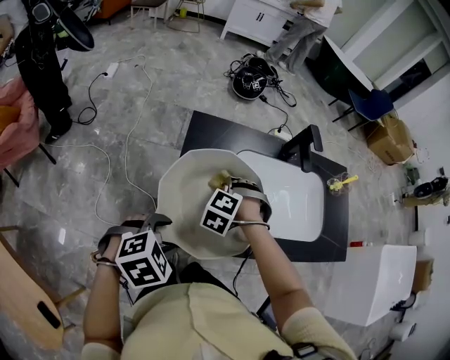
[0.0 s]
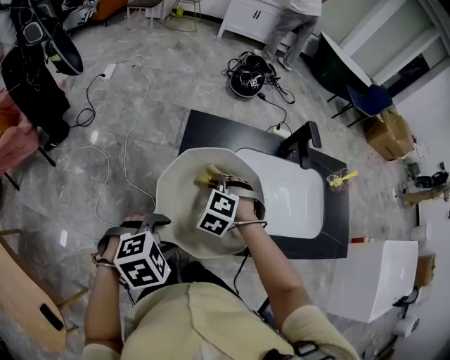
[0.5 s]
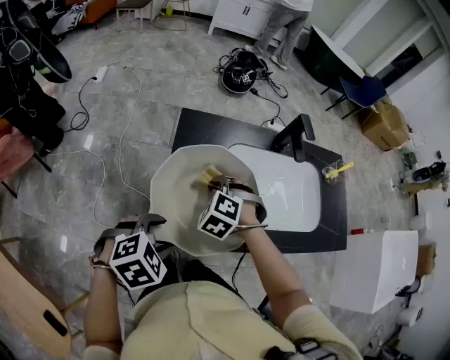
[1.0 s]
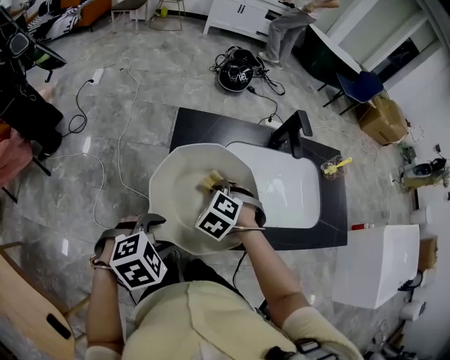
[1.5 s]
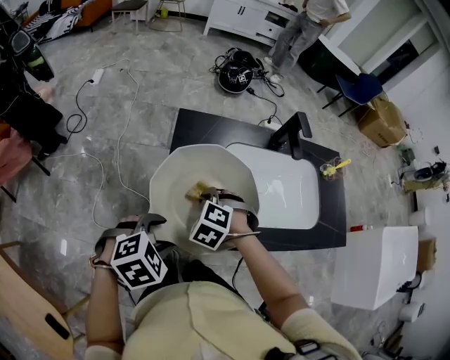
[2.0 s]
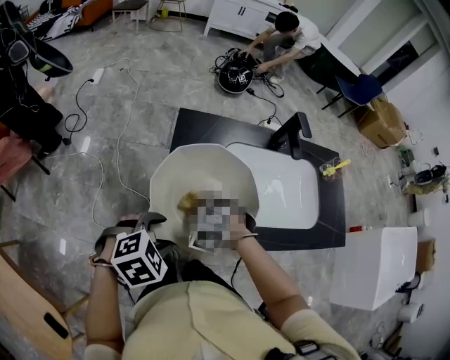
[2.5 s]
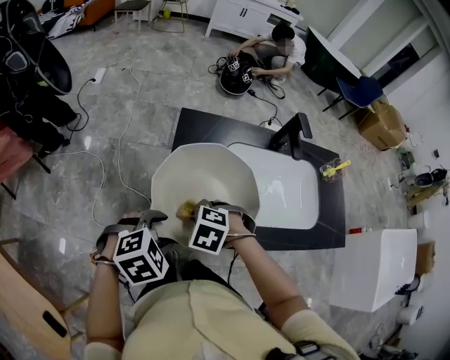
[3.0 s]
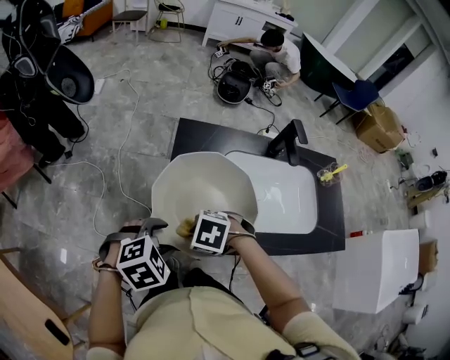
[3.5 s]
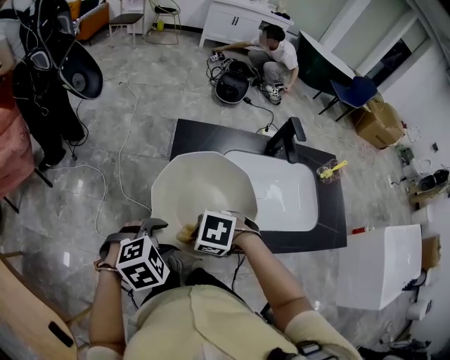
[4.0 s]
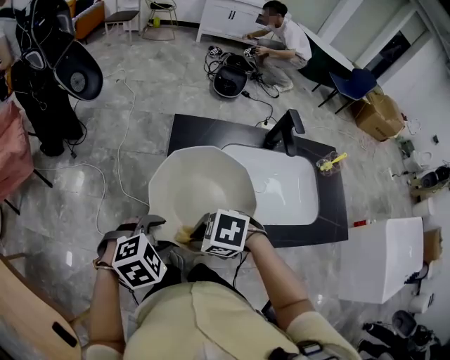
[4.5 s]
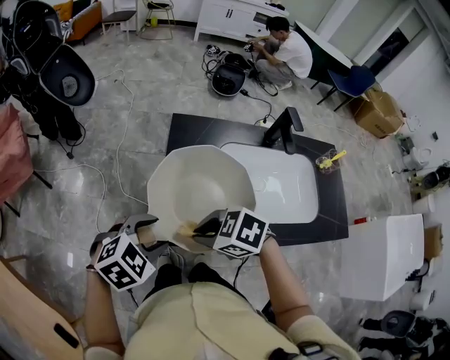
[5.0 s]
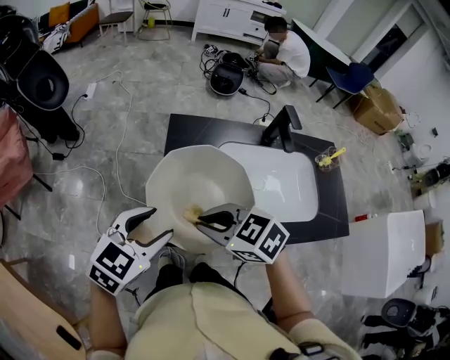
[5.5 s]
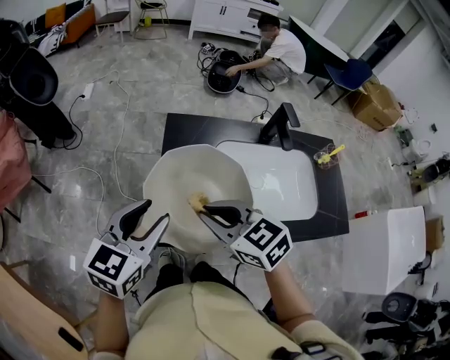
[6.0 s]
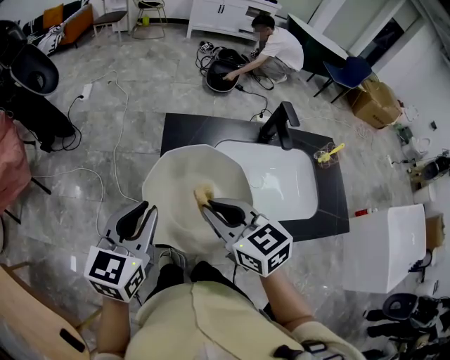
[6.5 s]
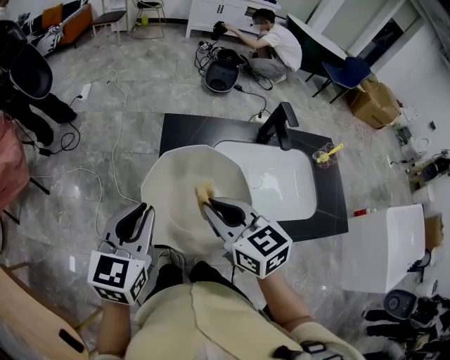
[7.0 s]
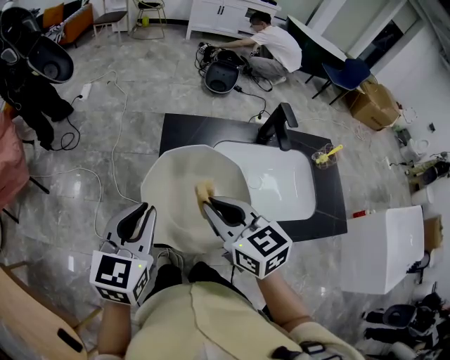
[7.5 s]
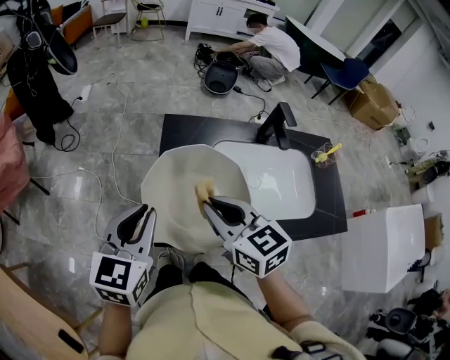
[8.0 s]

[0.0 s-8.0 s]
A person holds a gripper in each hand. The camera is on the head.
0.0 to 2.0 s: The right gripper goes roughly 5 cm backward.
2.0 to 4.0 s: The right gripper shifts by roughly 15 cm, and turns by approximately 40 degrees.
4.0 to 6.0 s: The grippers both shift upward by some 10 cm. The left gripper tips its fingers upward by about 40 degrees. Meanwhile the right gripper tilts its fingers about 40 degrees upward.
6.0 to 8.0 s: The left gripper closes its fingers.

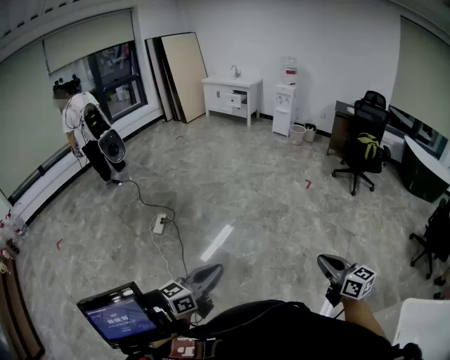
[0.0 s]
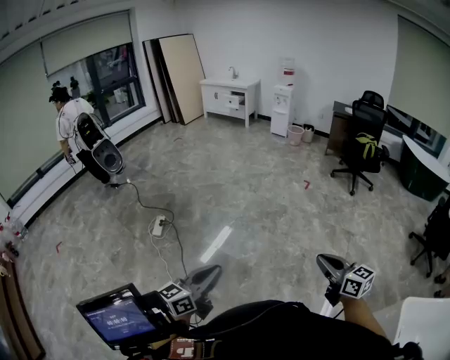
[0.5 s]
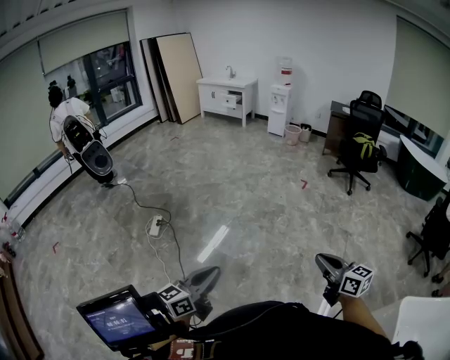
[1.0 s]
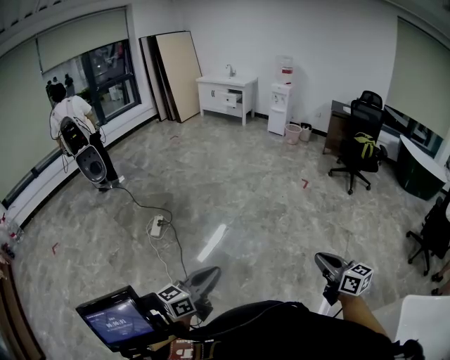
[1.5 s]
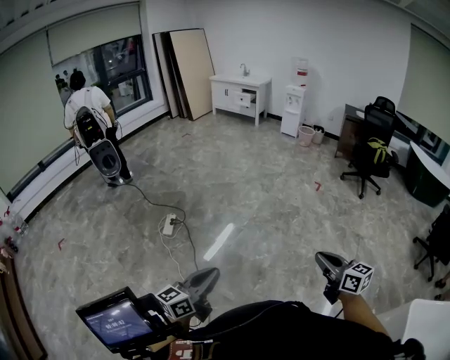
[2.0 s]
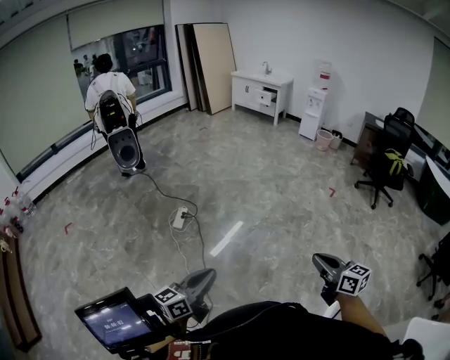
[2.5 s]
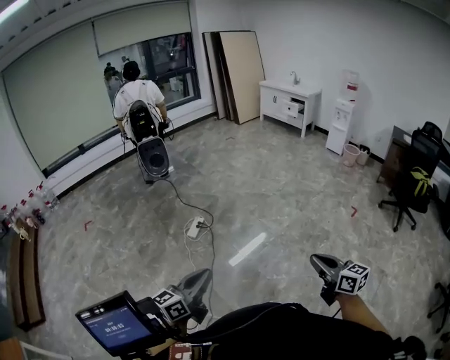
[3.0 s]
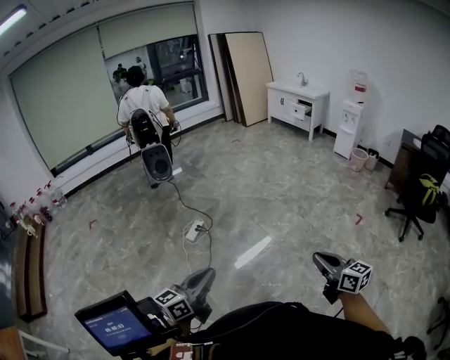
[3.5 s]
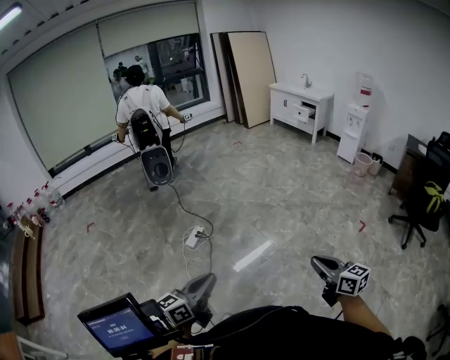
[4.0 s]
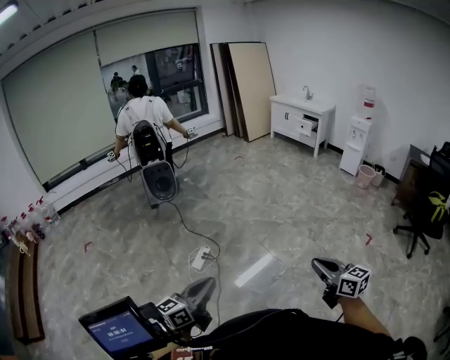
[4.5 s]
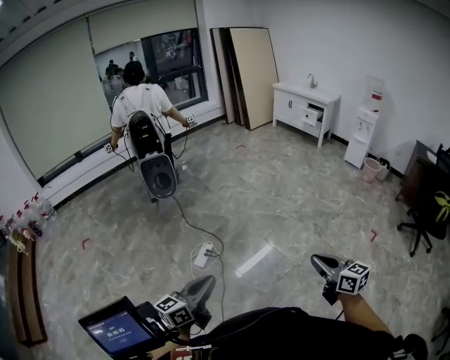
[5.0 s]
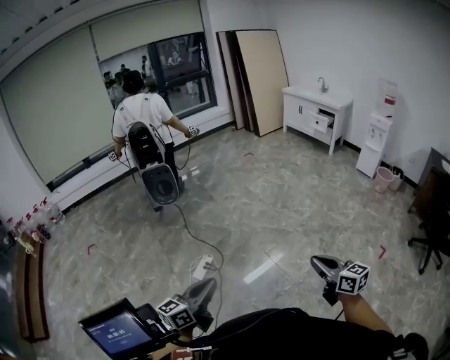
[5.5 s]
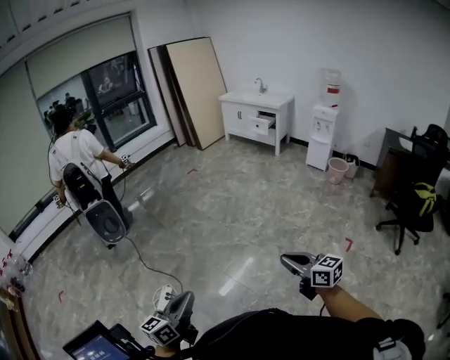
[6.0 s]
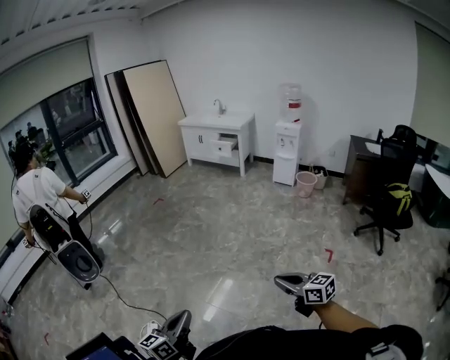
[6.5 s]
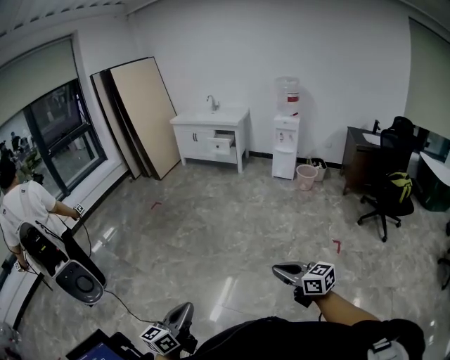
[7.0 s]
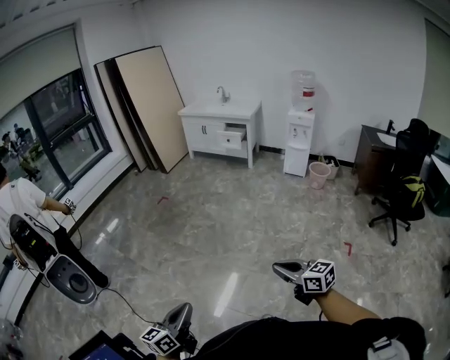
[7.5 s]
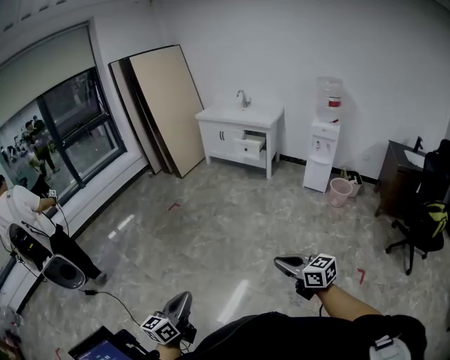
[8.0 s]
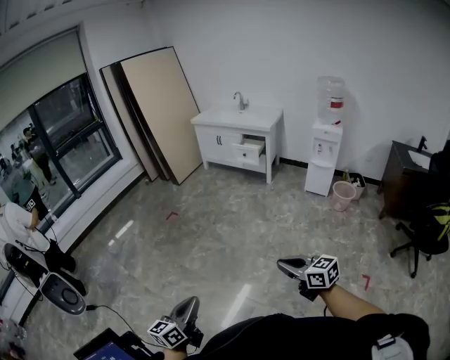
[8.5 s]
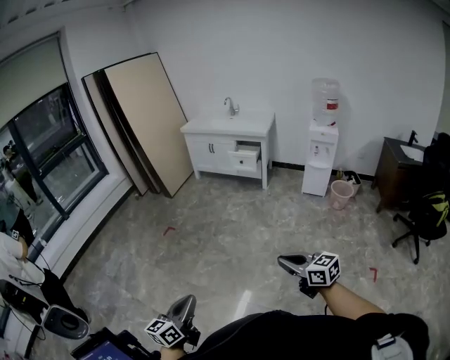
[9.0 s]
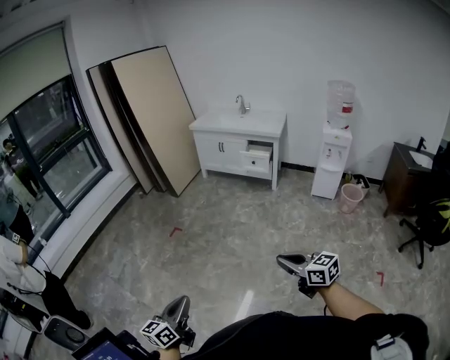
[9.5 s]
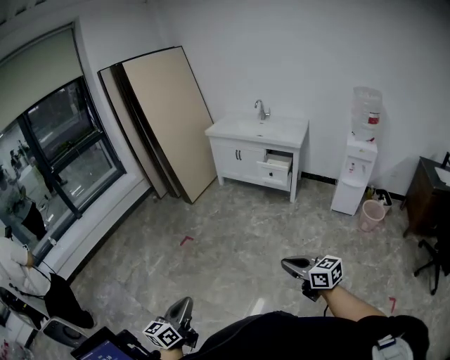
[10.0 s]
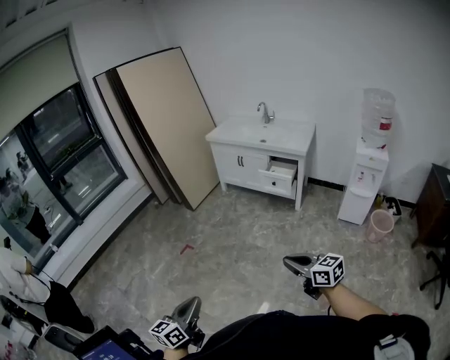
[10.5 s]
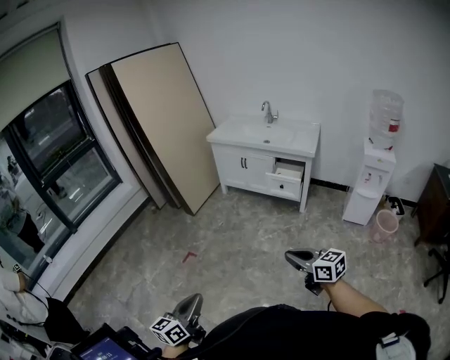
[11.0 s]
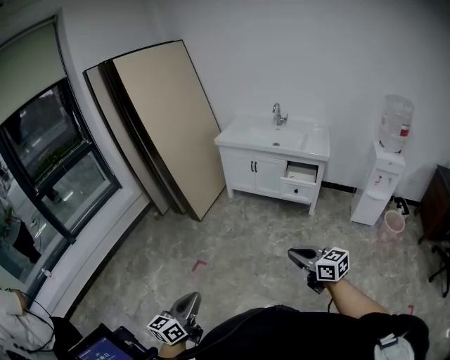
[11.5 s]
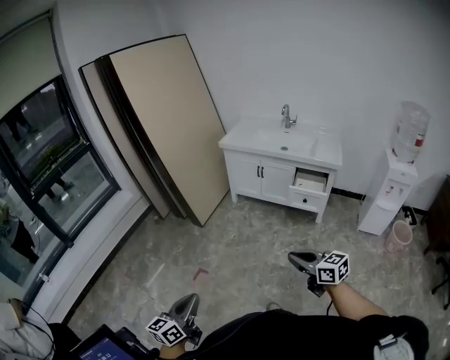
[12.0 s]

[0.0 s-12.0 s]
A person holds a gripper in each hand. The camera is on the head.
0.0 to 2.0 s: Both grippers travel together to the left, roughly 15 cm.
2.0 to 4.0 s: The left gripper moves forward and to the right, about 25 cm, and swivels roughly 20 degrees; the right gripper moves forward, about 30 cm, and changes its angle by some 20 degrees.
4.0 to 6.0 s: Both grippers are carried forward, approximately 50 cm.
6.0 to 8.0 s: The two grippers travel together, forward, roughly 50 cm.
8.0 to 10.0 s: The two grippers travel together, forward, roughly 50 cm.
10.0 to 12.0 s: The pair of grippers is taken forward, some 50 cm.

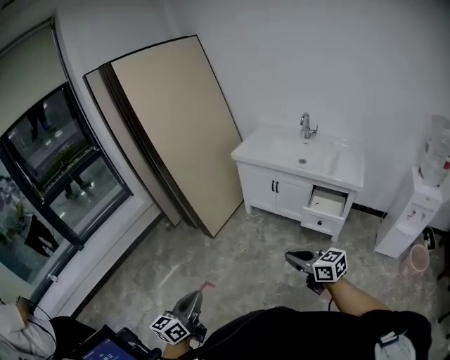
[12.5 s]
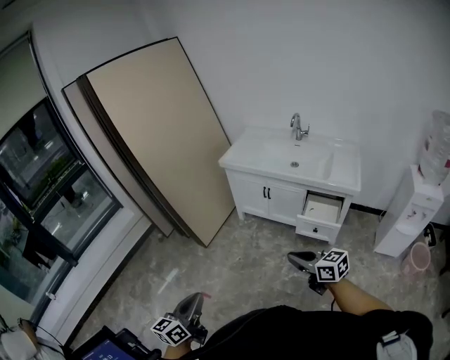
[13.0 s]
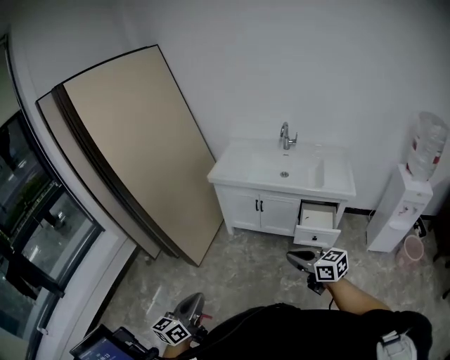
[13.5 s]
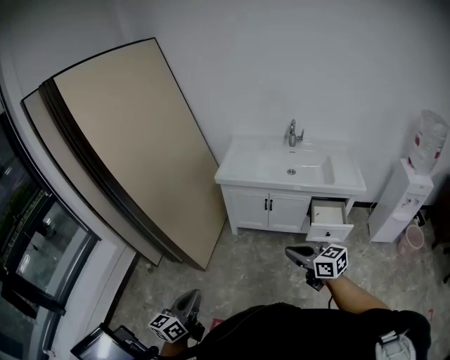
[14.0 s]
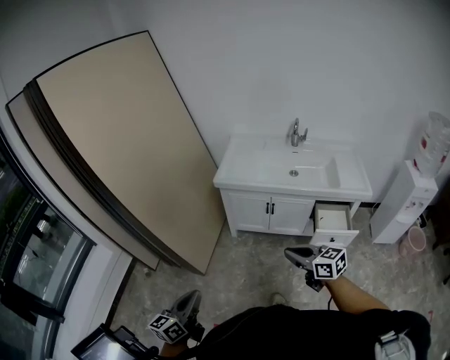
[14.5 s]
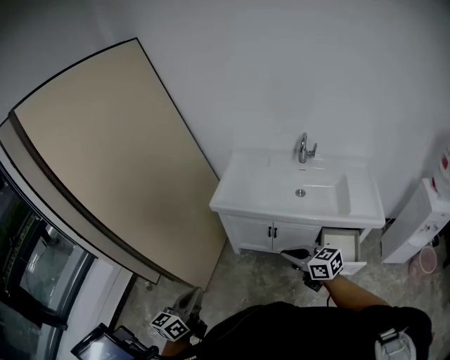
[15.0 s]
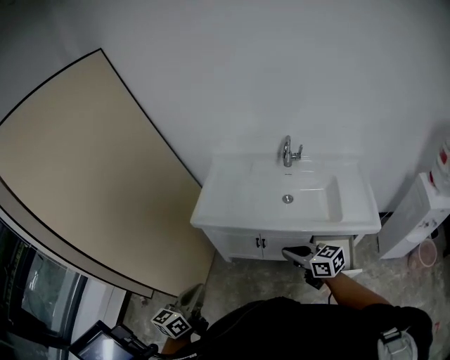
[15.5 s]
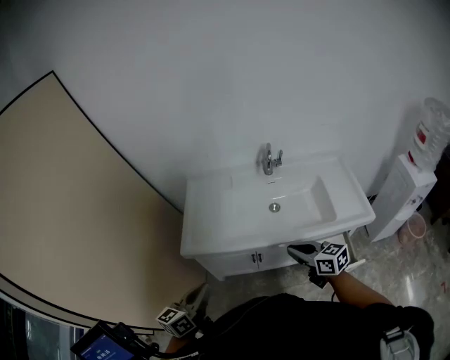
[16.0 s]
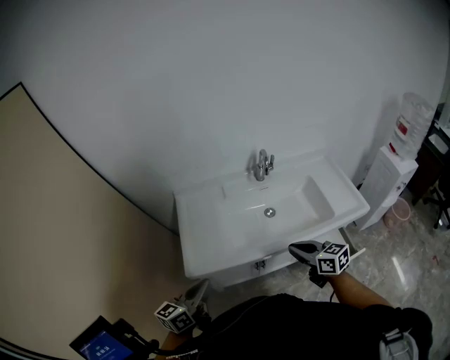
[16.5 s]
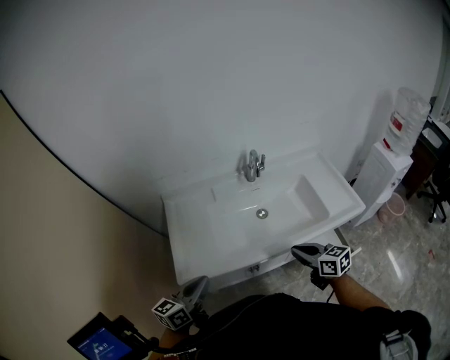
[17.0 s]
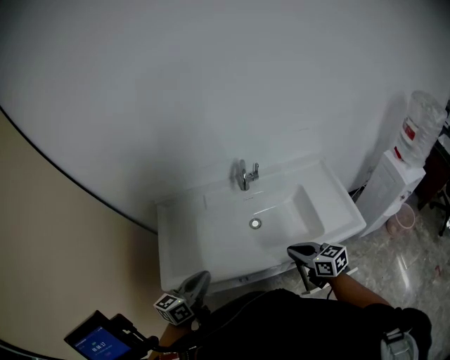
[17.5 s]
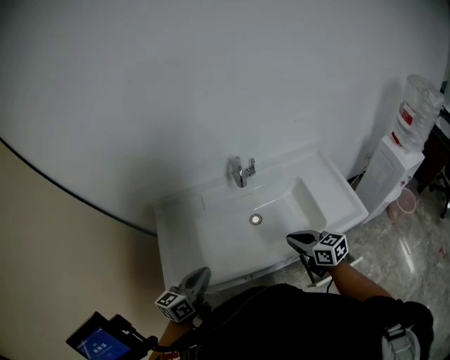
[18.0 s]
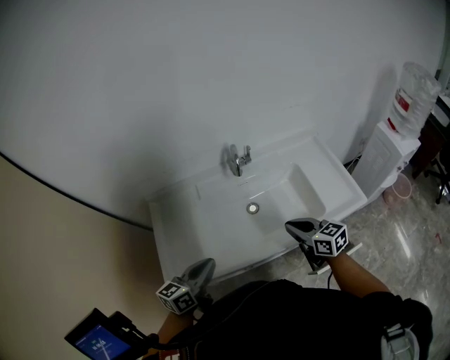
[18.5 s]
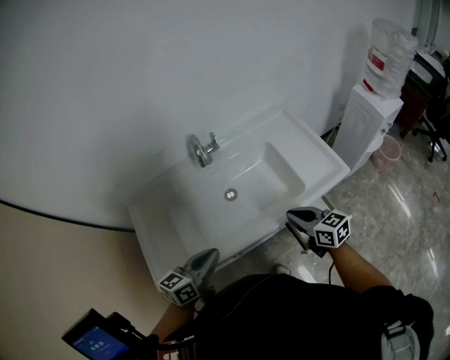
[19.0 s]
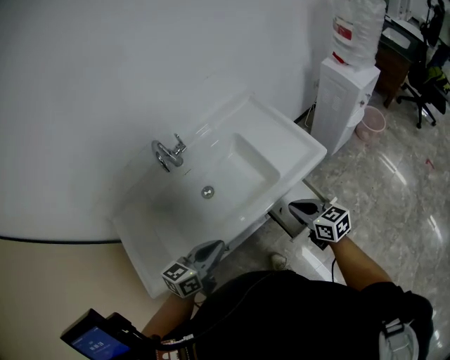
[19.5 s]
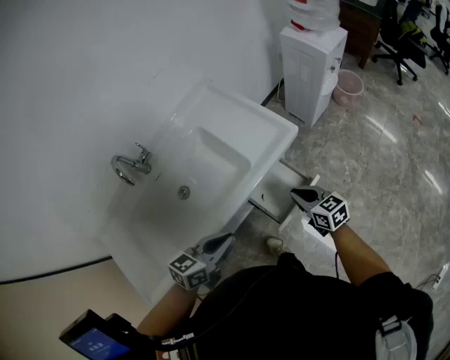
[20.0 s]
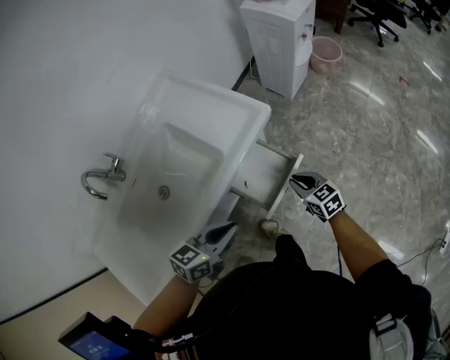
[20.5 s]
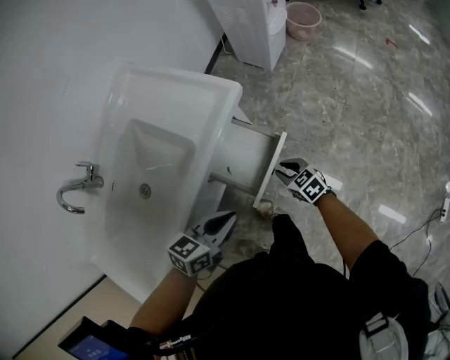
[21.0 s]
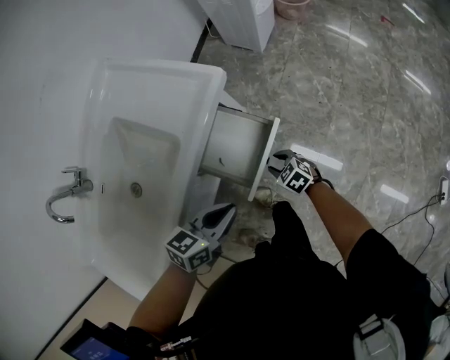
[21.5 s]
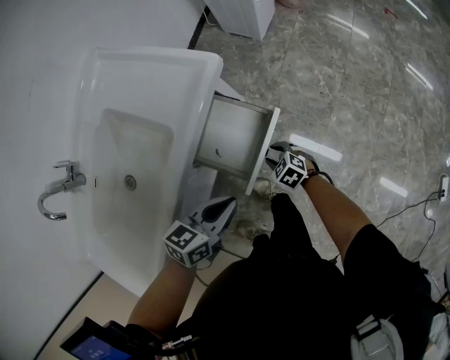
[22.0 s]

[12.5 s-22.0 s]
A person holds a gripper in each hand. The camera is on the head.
12.5 to 14.5 s: Both grippers travel together forward, about 40 cm.
14.5 to 16.5 s: Both grippers are carried some 50 cm. The right gripper rotates about 30 degrees; the left gripper changes its angle by about 30 degrees.
16.5 to 18.0 s: Both grippers travel together to the right and forward, about 20 cm.
18.0 to 20.0 s: The right gripper changes place by some 35 cm, and turns by about 30 degrees. The left gripper ends up roughly 35 cm from where it was, and turns by about 50 degrees.
20.0 to 22.0 s: The left gripper moves downward, roughly 15 cm, and swivels about 20 degrees, while the right gripper heads downward, covering about 30 cm, points its fingers some 30 degrees further downward, and opens.
